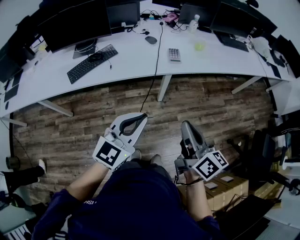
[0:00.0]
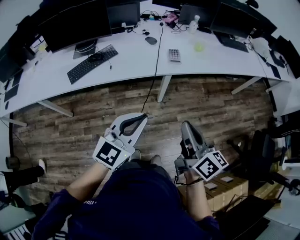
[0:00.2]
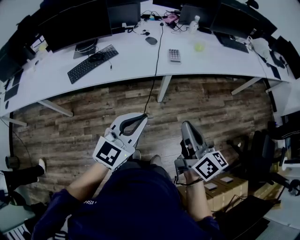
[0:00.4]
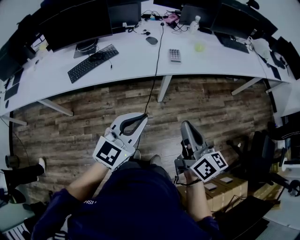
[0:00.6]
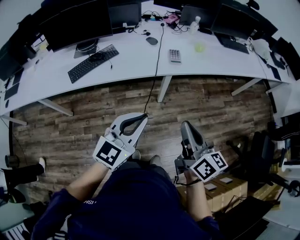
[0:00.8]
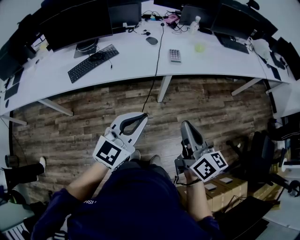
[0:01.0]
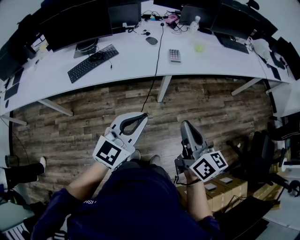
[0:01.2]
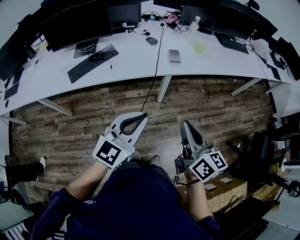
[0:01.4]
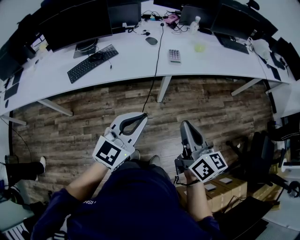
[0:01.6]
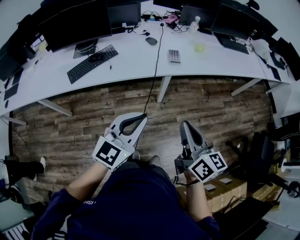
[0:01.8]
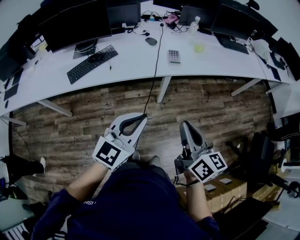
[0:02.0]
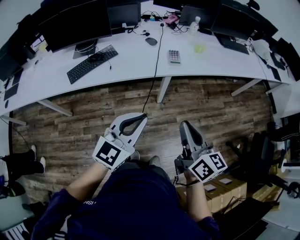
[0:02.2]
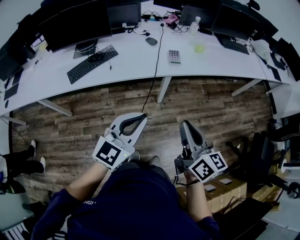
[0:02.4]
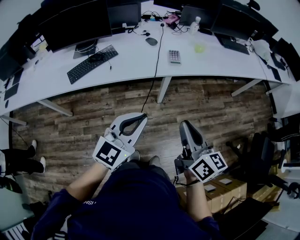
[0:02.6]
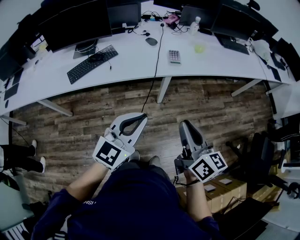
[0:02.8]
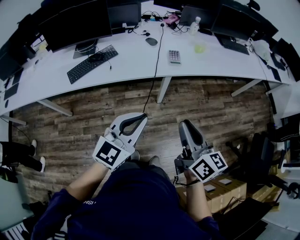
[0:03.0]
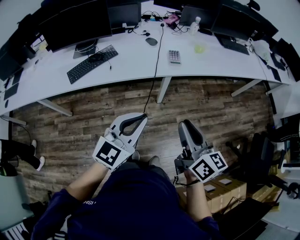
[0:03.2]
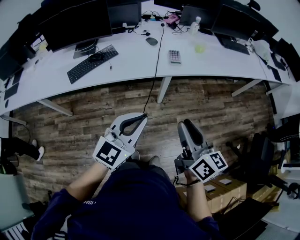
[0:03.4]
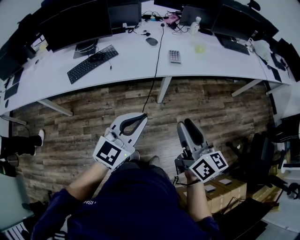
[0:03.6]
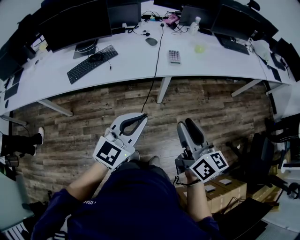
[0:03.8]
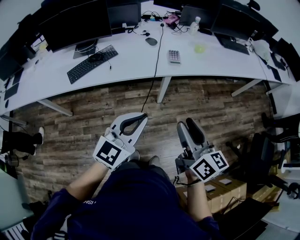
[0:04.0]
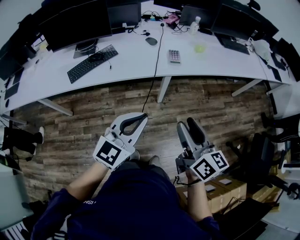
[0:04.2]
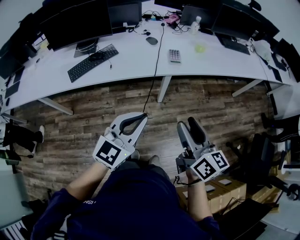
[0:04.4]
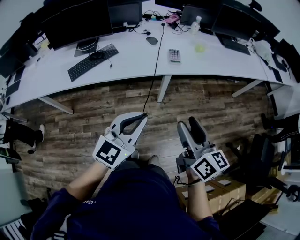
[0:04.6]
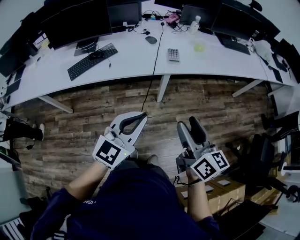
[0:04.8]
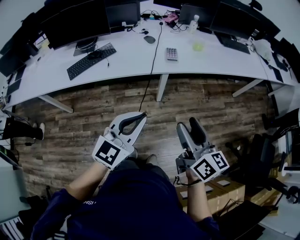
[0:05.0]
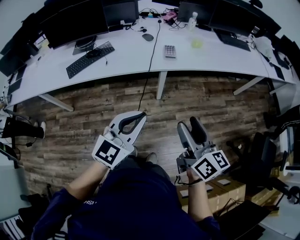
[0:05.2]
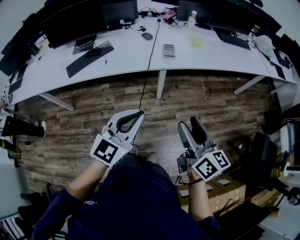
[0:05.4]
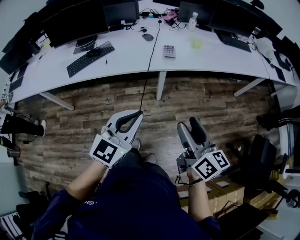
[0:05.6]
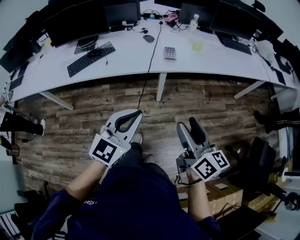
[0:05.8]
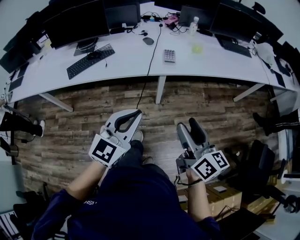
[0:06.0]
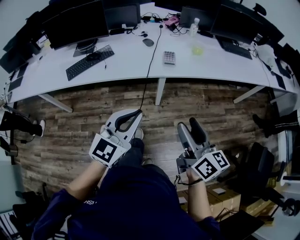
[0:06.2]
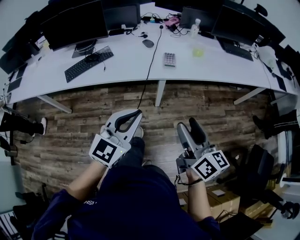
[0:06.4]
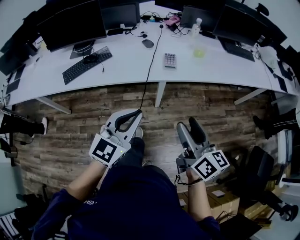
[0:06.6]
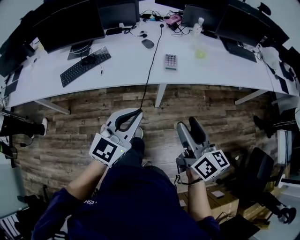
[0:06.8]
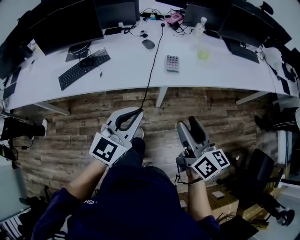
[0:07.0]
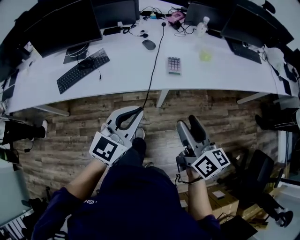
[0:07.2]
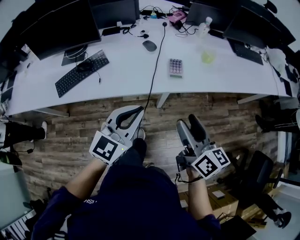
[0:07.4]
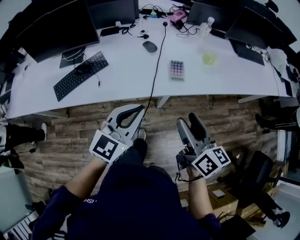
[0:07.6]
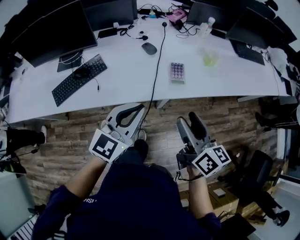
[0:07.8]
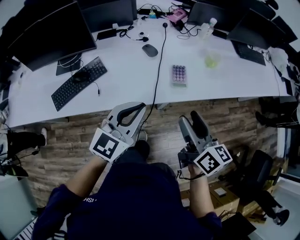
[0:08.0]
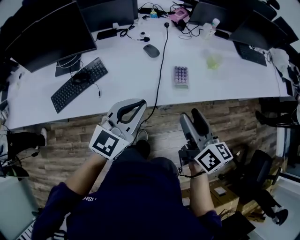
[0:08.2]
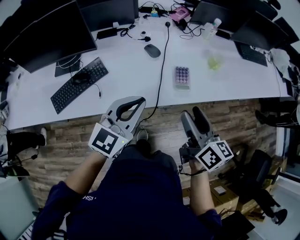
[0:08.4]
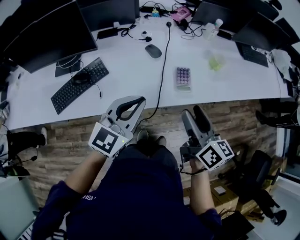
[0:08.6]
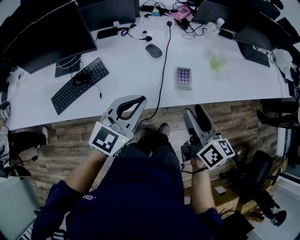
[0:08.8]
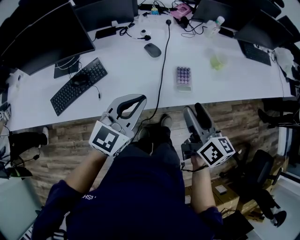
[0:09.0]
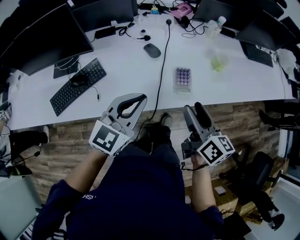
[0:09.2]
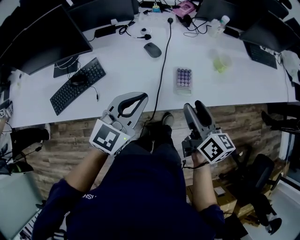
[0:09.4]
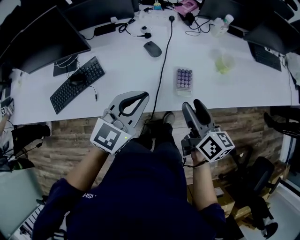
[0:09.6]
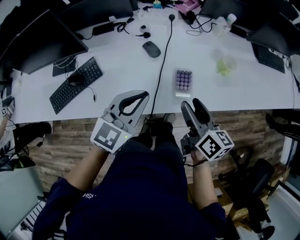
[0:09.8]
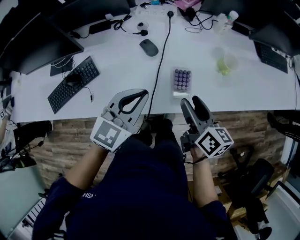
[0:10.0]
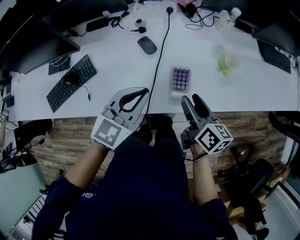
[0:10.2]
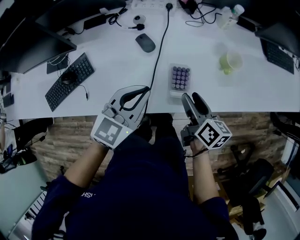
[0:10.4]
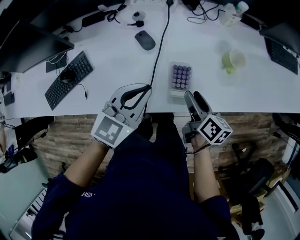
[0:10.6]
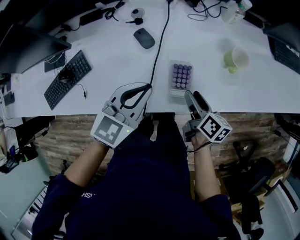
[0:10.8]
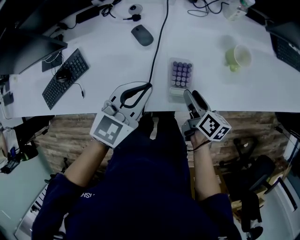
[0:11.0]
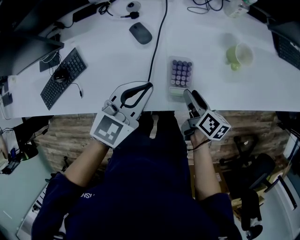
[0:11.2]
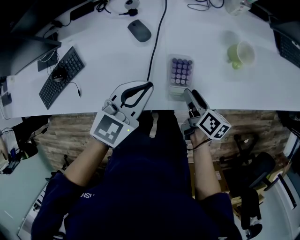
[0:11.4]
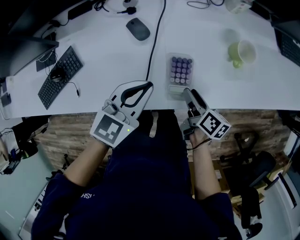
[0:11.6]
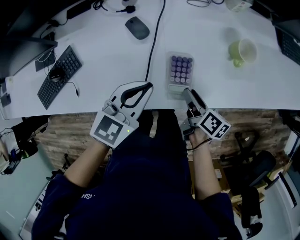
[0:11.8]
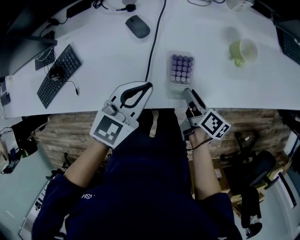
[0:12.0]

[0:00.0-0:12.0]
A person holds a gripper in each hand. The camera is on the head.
0:00.0 to 0:01.6: There are only small adjustments of the grippers.
0:01.6 to 0:03.0: The two grippers keep their place.
0:03.0 to 0:04.4: The right gripper opens up.
0:04.4 to 0:06.0: Both grippers travel together to the right, approximately 5 cm.
0:06.0 to 0:07.6: The grippers both shift forward by about 25 cm.
0:07.6 to 0:09.0: The grippers both shift forward by about 10 cm.
0:09.0 to 0:10.4: The left gripper shifts approximately 15 cm forward, downward and to the right, while the right gripper is displaced downward and forward by about 20 cm.
0:10.4 to 0:12.0: The right gripper moves downward, approximately 10 cm, and swivels approximately 20 degrees; the left gripper heads downward, covering about 5 cm.

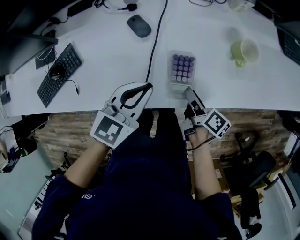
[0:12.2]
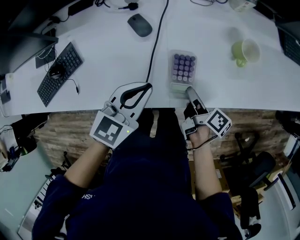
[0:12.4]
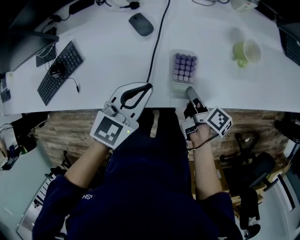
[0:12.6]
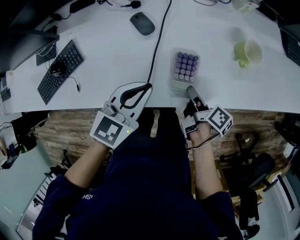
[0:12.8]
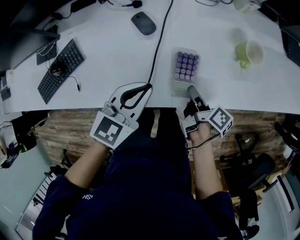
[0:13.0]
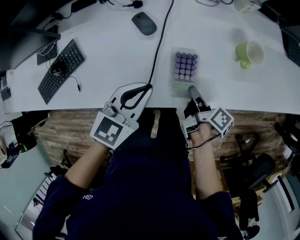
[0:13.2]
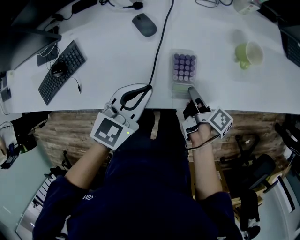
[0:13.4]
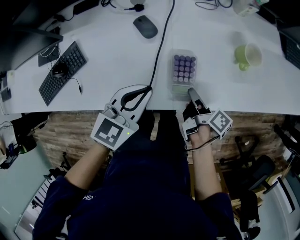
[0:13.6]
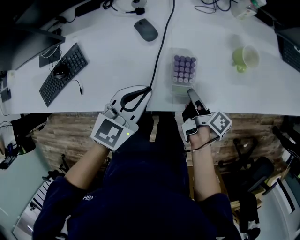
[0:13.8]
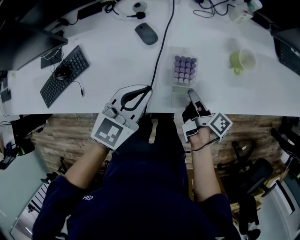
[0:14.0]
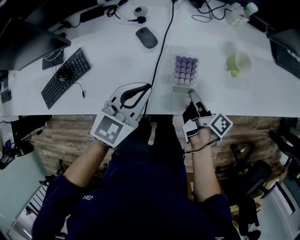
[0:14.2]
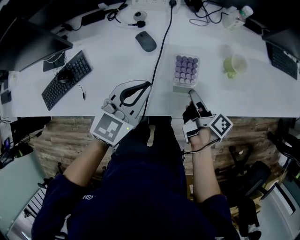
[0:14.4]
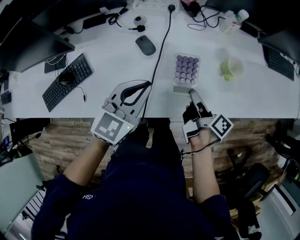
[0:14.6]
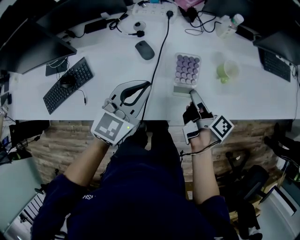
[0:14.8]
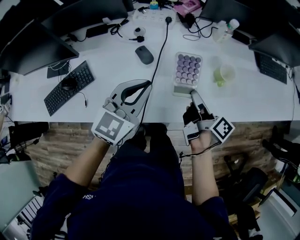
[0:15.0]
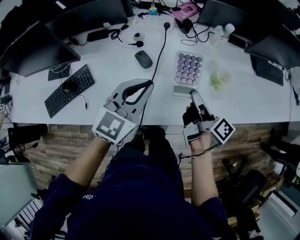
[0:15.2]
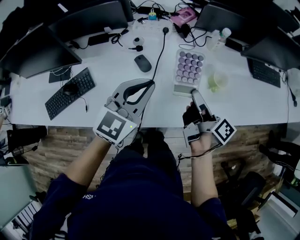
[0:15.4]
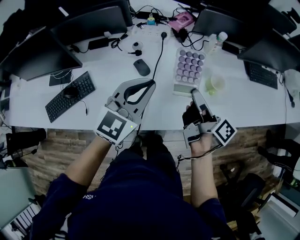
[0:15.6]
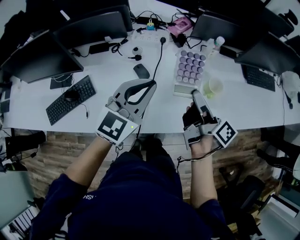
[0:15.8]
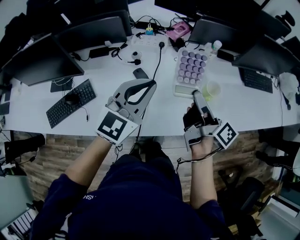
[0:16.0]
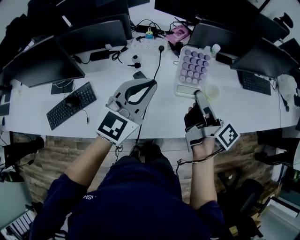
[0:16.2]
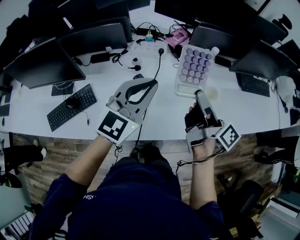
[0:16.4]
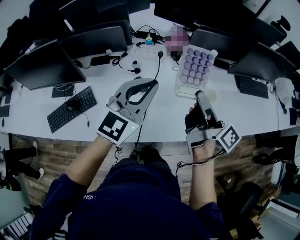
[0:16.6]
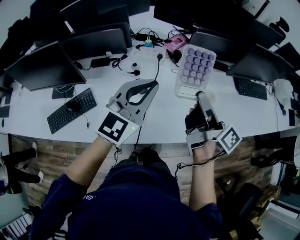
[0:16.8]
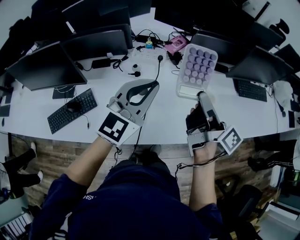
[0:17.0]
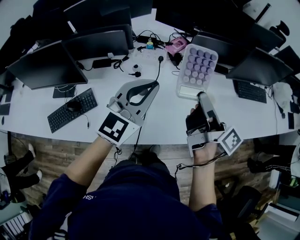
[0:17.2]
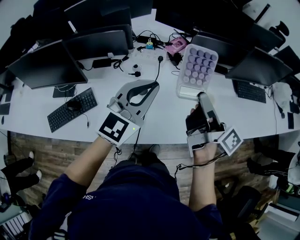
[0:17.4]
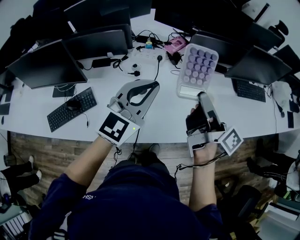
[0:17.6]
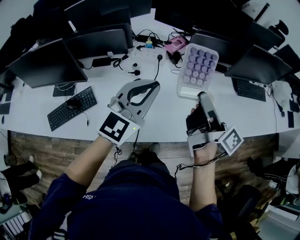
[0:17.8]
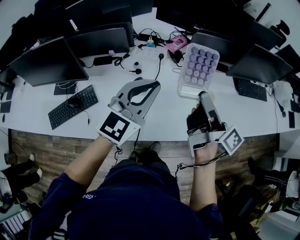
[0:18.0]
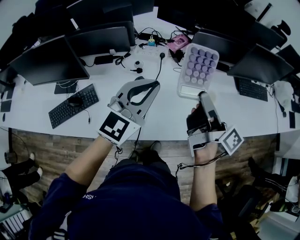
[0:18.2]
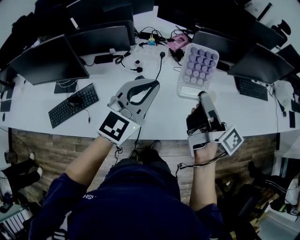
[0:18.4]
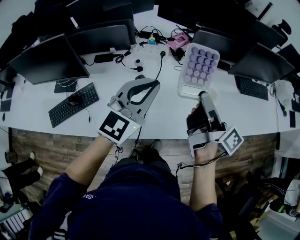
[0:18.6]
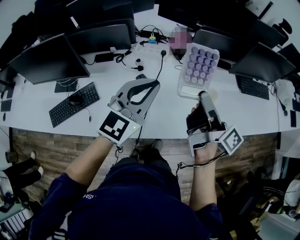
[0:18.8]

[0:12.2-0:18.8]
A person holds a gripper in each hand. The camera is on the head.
0:12.2 to 0:13.8: The grippers stay close to where they were, moving slightly.
0:13.8 to 0:15.4: The right gripper shifts some 20 cm upward, and swivels approximately 20 degrees, while the left gripper goes some 15 cm upward and forward, and changes its angle by roughly 20 degrees.
0:15.4 to 0:17.2: The left gripper shifts roughly 10 cm upward; the right gripper is displaced upward by about 15 cm.
0:17.2 to 0:18.8: There are only small adjustments of the grippers.

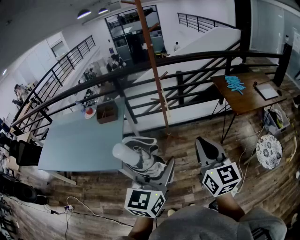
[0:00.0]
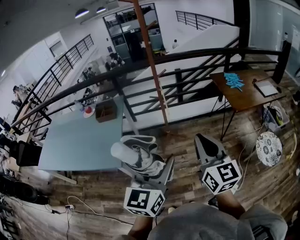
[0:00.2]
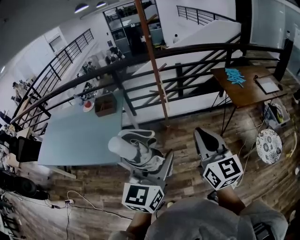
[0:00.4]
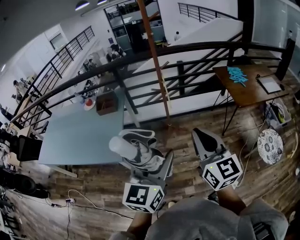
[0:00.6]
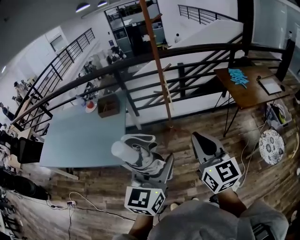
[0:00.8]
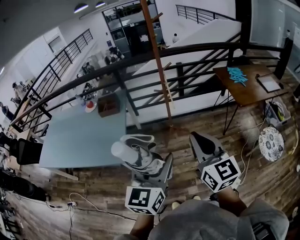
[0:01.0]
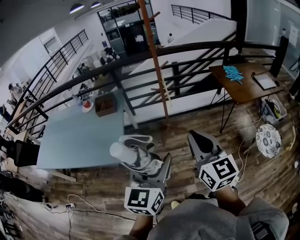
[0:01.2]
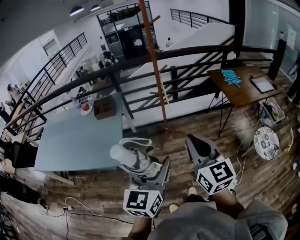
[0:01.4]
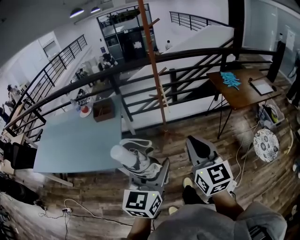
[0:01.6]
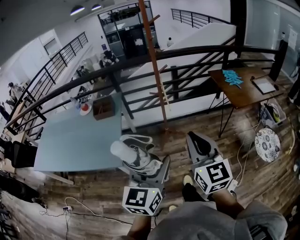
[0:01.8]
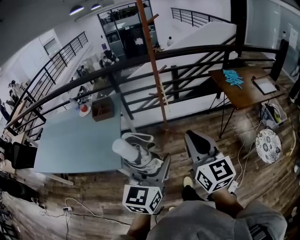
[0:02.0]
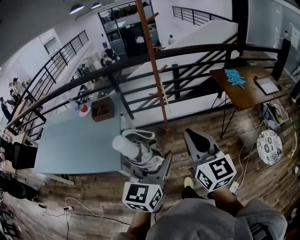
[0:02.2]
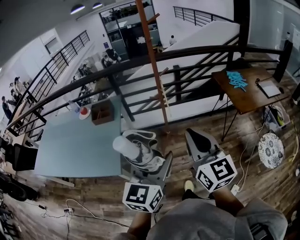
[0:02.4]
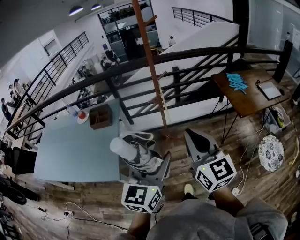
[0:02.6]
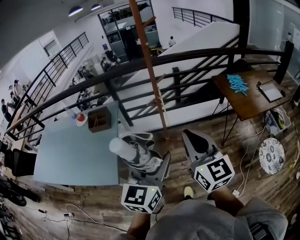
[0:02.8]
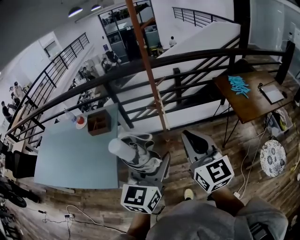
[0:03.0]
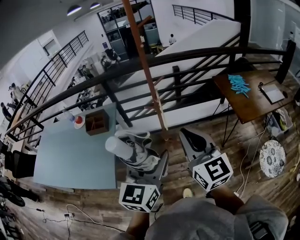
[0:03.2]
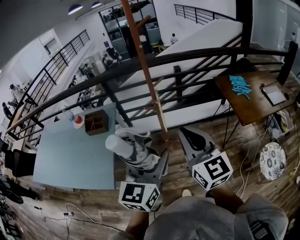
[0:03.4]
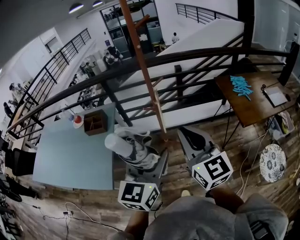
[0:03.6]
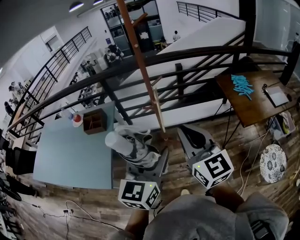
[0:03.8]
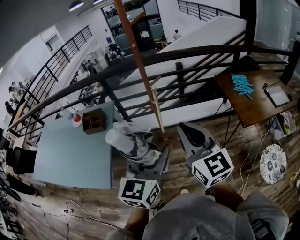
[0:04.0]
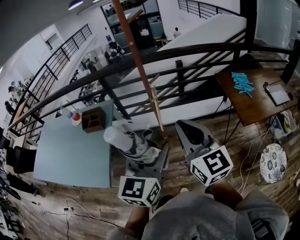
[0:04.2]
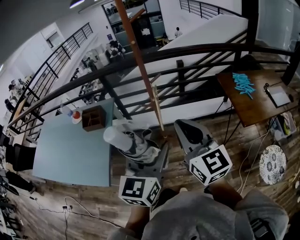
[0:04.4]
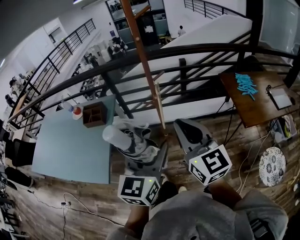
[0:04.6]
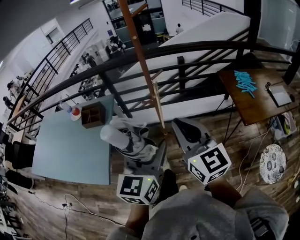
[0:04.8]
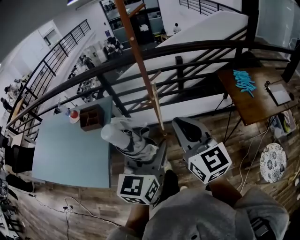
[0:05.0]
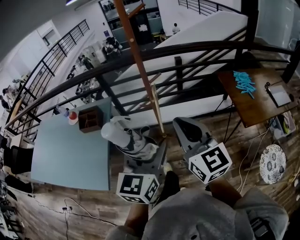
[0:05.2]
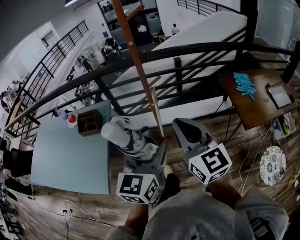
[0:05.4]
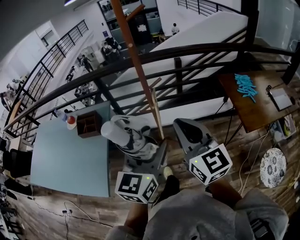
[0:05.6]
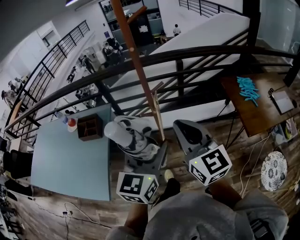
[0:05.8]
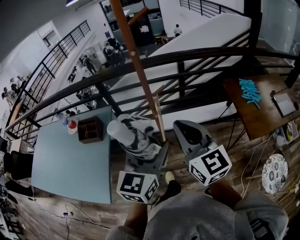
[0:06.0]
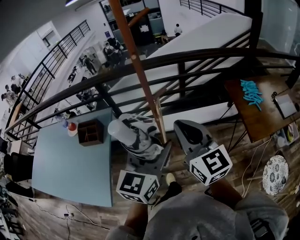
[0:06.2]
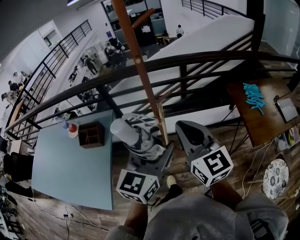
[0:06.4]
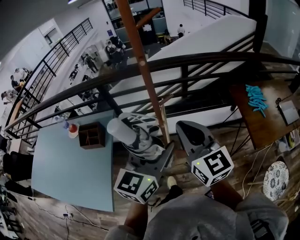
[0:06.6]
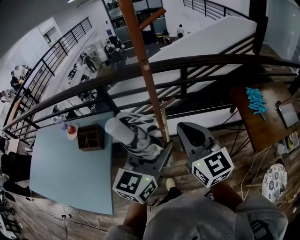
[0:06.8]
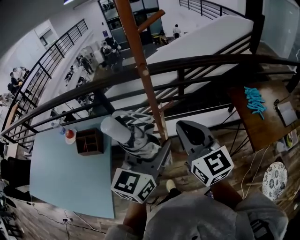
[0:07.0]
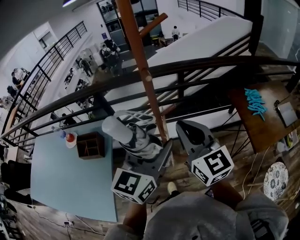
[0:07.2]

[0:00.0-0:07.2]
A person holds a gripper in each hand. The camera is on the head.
0:00.0 to 0:01.4: Both grippers move to the left, approximately 10 cm.
0:01.4 to 0:02.8: The two grippers go roughly 15 cm forward.
0:02.8 to 0:04.4: Both grippers move forward and to the right, about 15 cm.
0:04.4 to 0:05.8: Both grippers move forward, approximately 15 cm.
0:05.8 to 0:07.2: The grippers both shift forward by some 15 cm.
